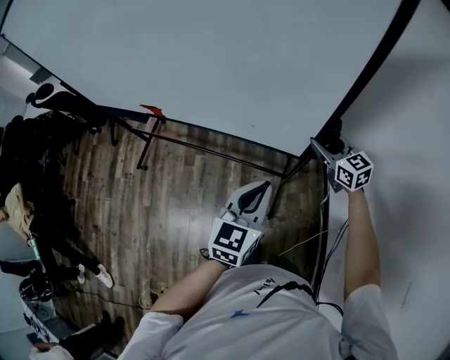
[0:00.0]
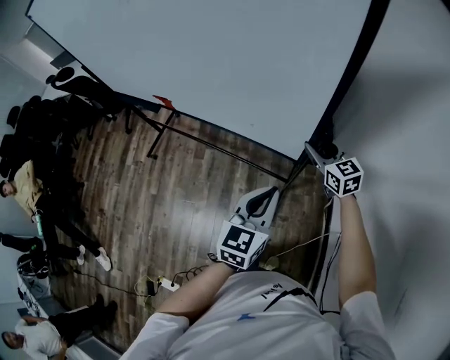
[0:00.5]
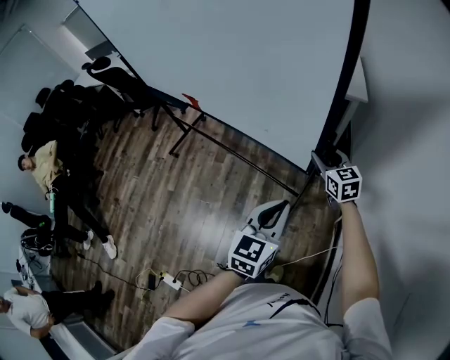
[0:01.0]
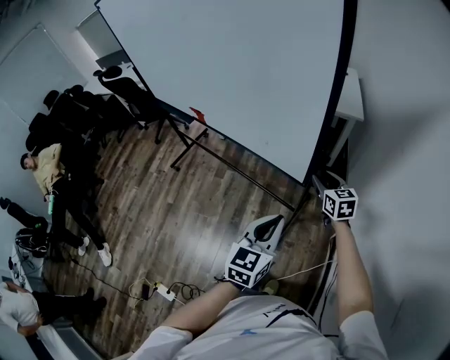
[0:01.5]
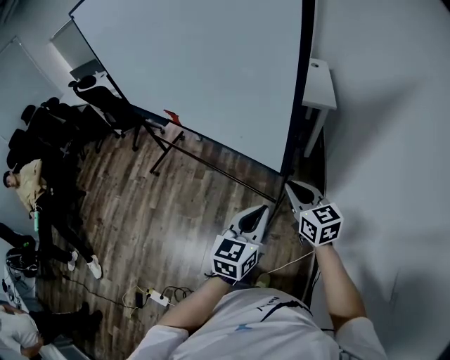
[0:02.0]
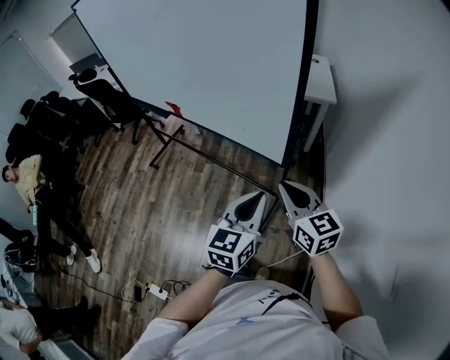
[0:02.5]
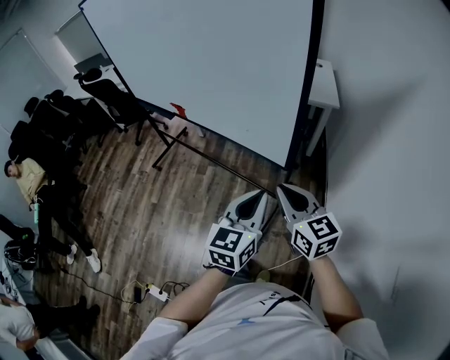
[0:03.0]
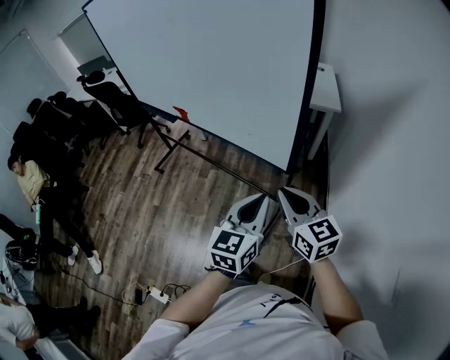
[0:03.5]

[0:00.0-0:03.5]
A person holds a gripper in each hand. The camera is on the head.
0:00.0 to 0:02.0: Both grippers move backward, some 20 cm. The right gripper closes up.
0:02.0 to 0:03.5: The right gripper travels backward, upward and to the left by some 10 cm.

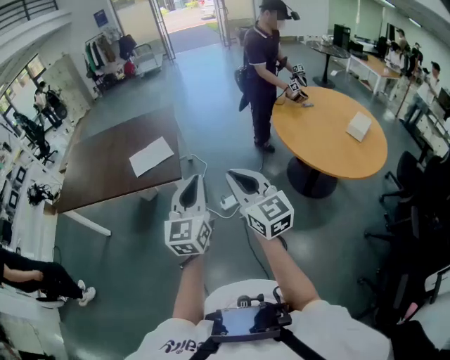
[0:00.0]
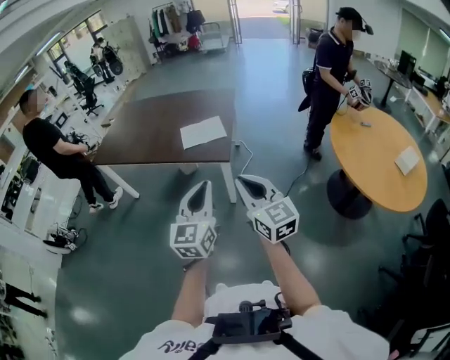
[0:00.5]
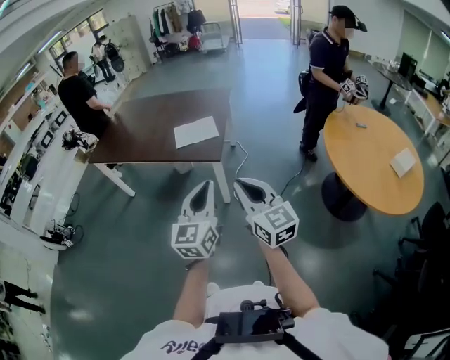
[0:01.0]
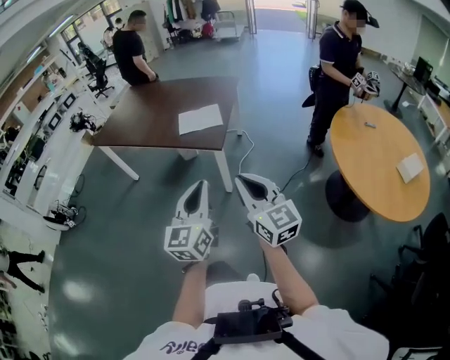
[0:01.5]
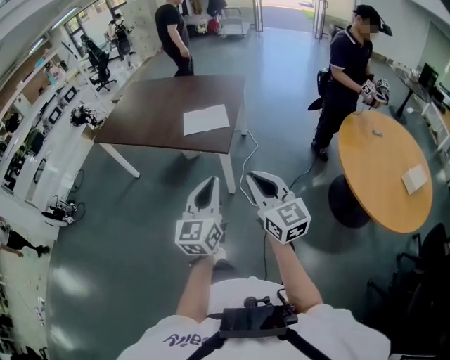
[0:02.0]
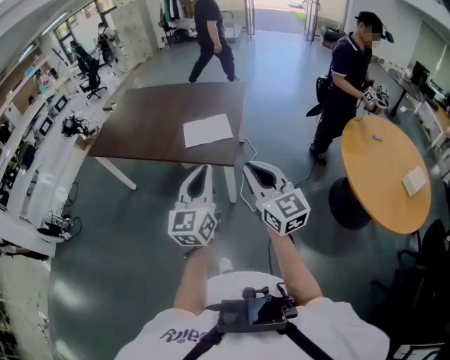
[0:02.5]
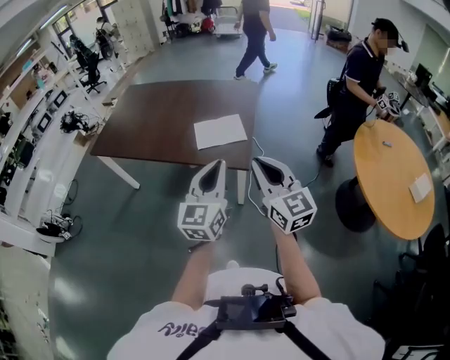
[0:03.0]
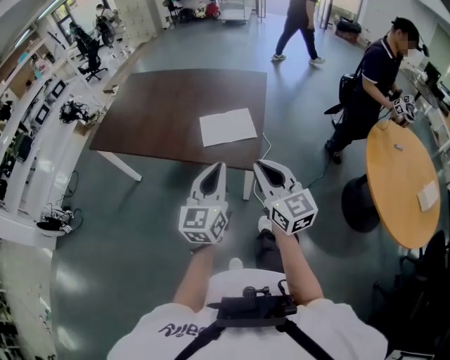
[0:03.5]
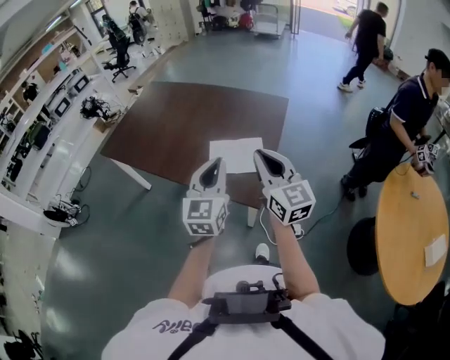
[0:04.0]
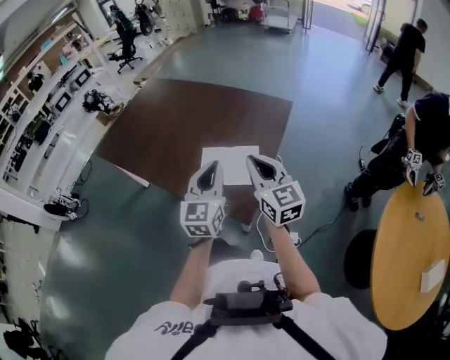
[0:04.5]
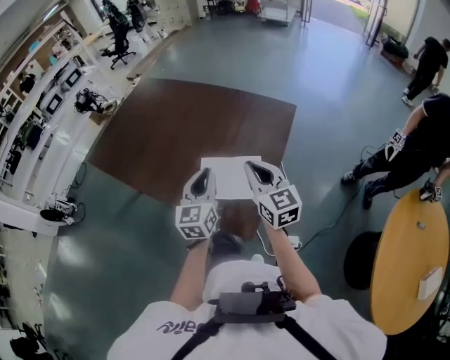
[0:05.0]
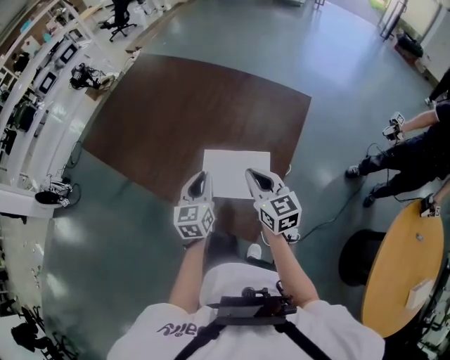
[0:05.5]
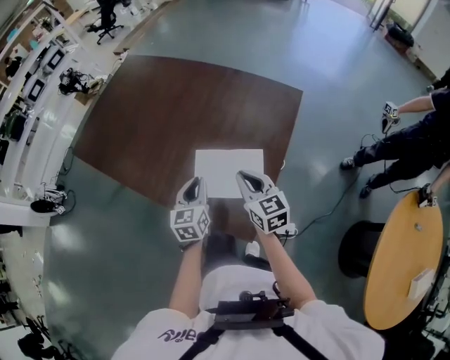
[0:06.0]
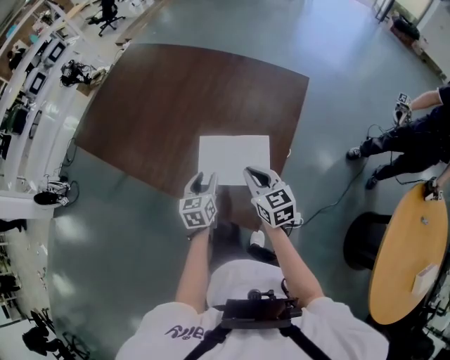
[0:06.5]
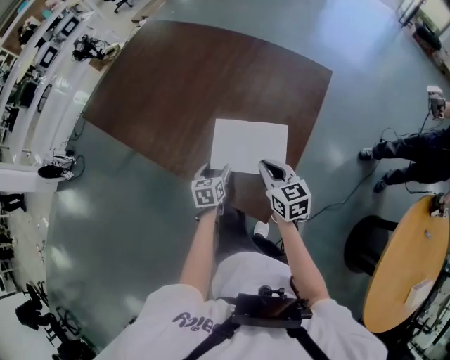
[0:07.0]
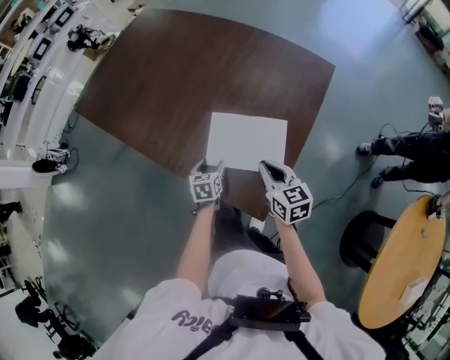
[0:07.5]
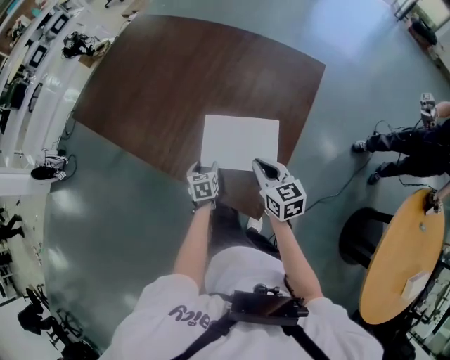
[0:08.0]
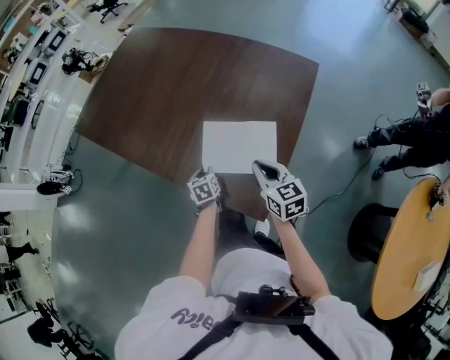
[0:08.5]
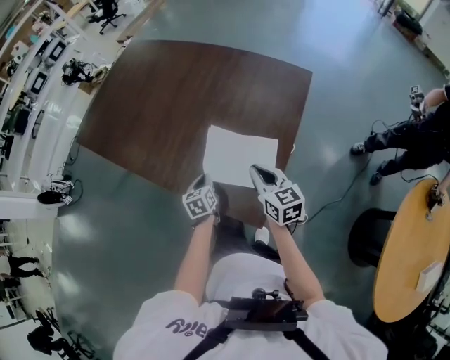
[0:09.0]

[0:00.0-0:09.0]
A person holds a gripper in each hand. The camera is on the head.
0:00.0 to 0:02.0: The left gripper shifts approximately 5 cm downward. Meanwhile the right gripper moves forward and downward, approximately 10 cm, and travels to the left and back again, approximately 10 cm each way.
0:02.0 to 0:04.5: The two grippers travel together, forward, roughly 50 cm.
0:04.5 to 0:07.0: The left gripper goes approximately 35 cm downward, angles its fingers downward, by roughly 40 degrees, and opens up. Meanwhile the right gripper moves downward, some 20 cm, and swivels roughly 30 degrees.
0:07.0 to 0:09.0: The left gripper closes up.

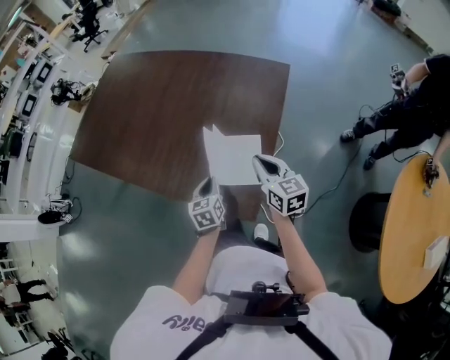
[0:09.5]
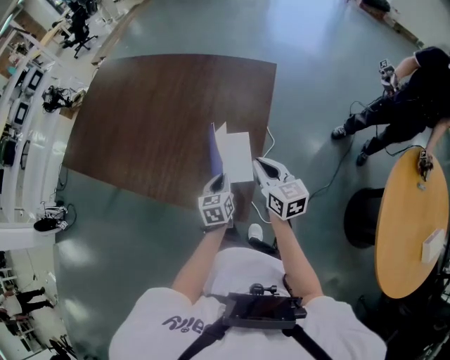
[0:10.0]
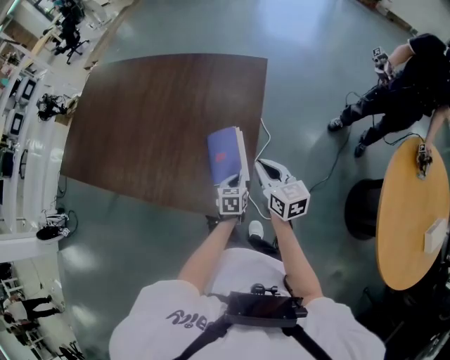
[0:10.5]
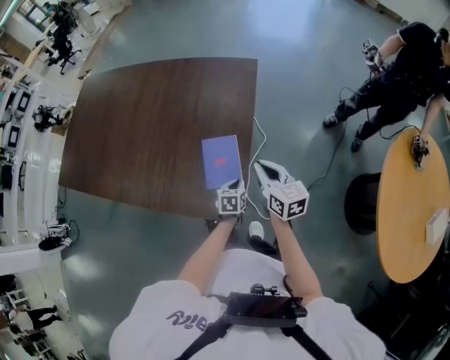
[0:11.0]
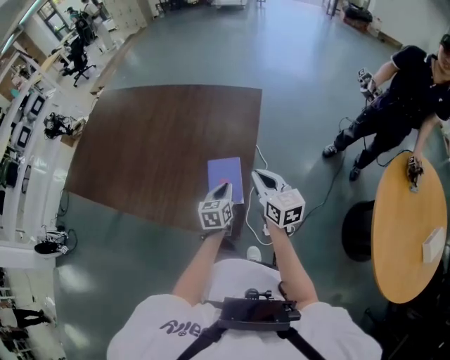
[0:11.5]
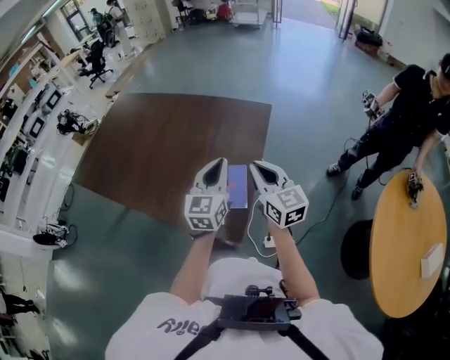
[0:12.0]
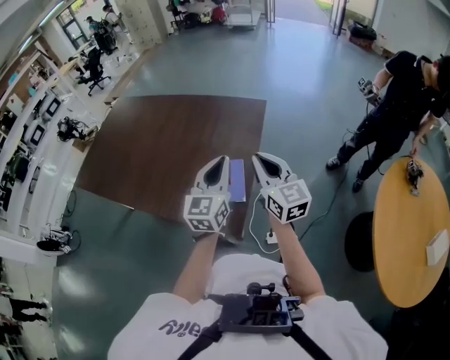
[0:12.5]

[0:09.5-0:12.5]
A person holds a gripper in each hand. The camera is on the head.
0:09.5 to 0:11.0: The right gripper shifts some 10 cm to the right; the left gripper goes some 20 cm to the right and downward, and rotates about 30 degrees.
0:11.0 to 0:12.5: The right gripper is displaced upward by approximately 20 cm, and turns by approximately 30 degrees; the left gripper shifts approximately 40 cm upward, and tips its fingers upward by about 50 degrees.

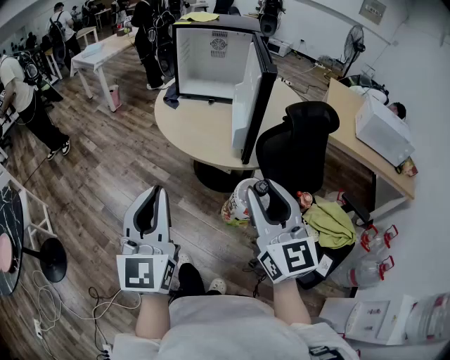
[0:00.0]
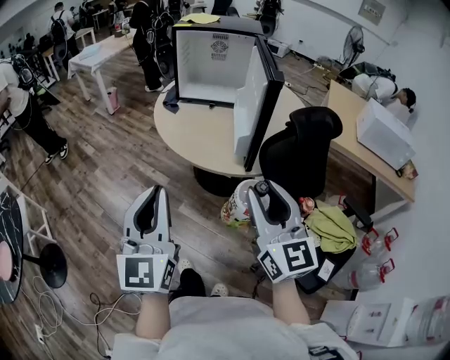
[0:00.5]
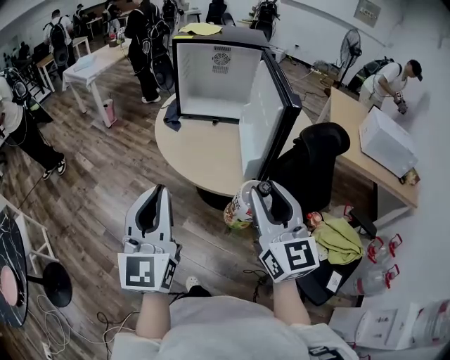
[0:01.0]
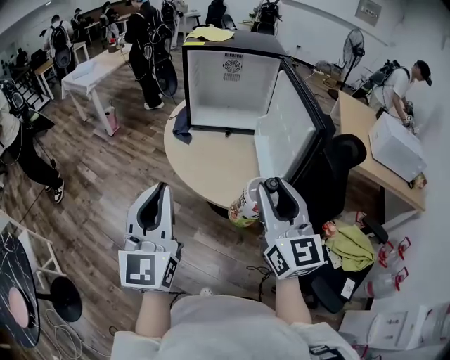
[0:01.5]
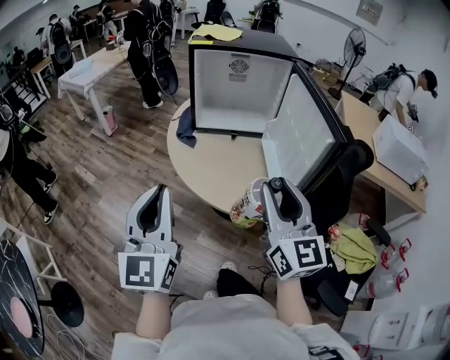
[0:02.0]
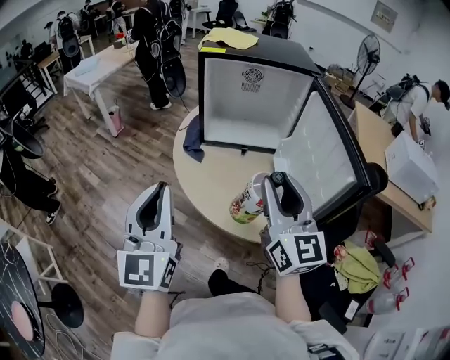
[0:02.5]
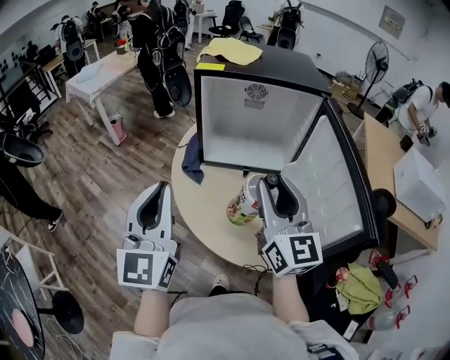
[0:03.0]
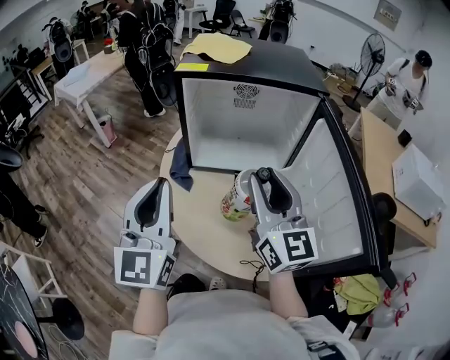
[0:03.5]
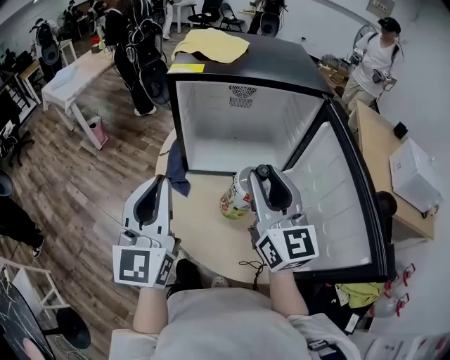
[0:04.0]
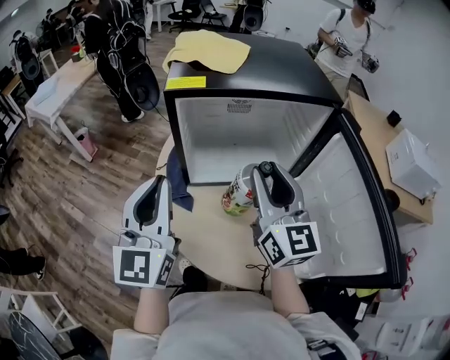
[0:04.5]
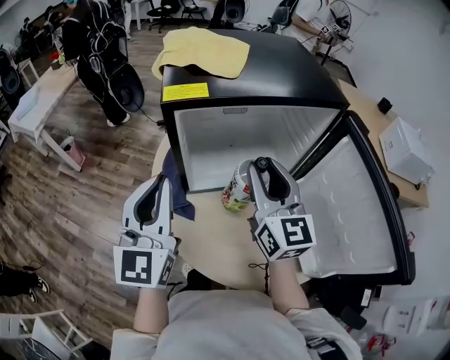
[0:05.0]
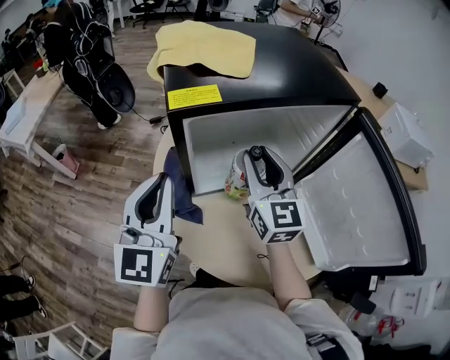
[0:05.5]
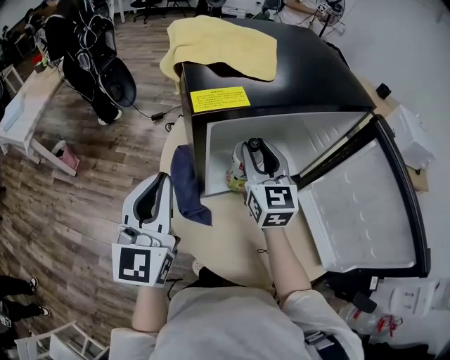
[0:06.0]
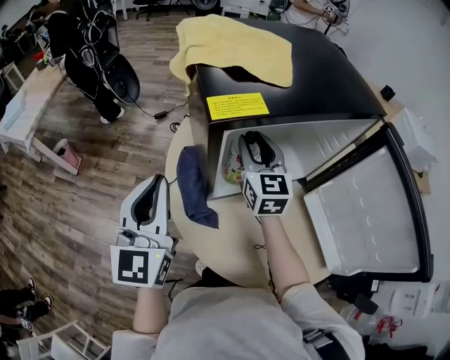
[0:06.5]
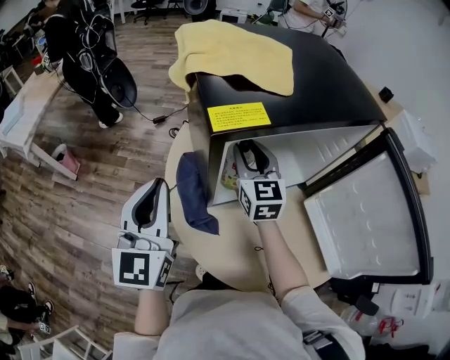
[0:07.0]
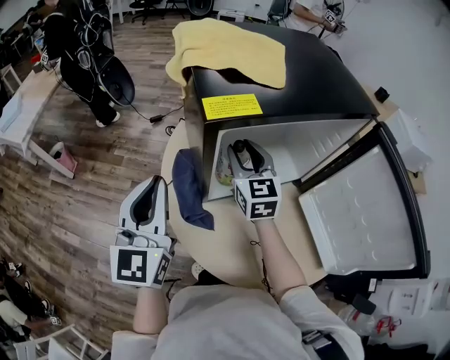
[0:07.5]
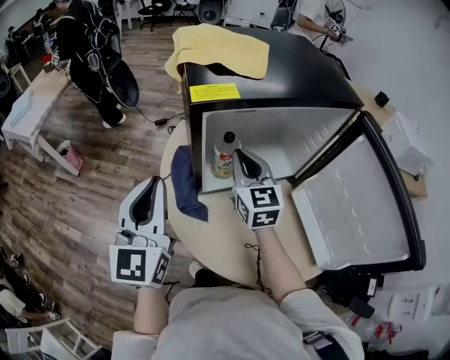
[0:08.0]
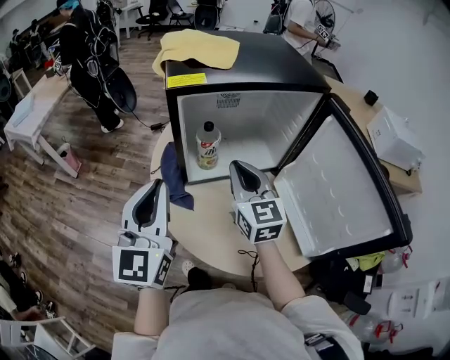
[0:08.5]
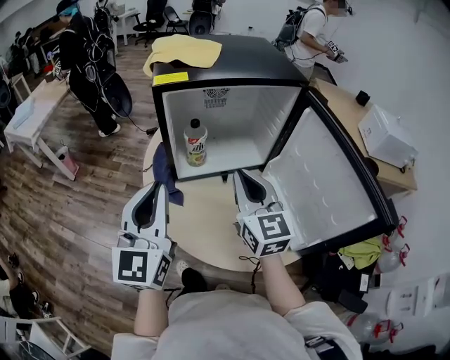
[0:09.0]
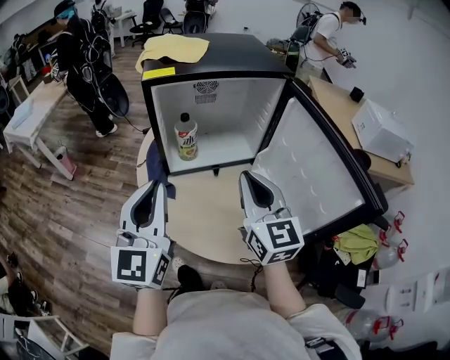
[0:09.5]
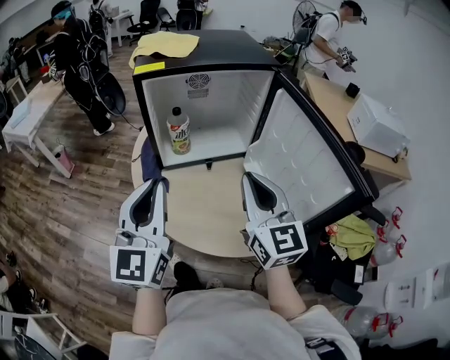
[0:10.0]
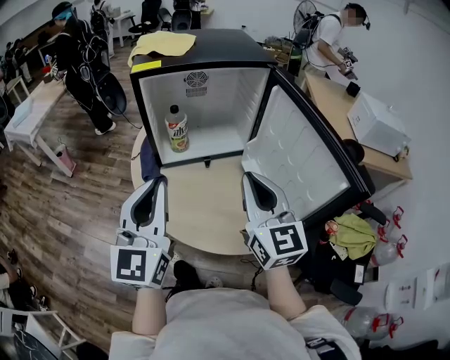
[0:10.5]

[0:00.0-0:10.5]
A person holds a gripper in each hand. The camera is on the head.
0:00.0 to 0:02.0: Both grippers travel together forward and to the left, roughly 30 cm.
0:02.0 to 0:04.0: The two grippers go some 30 cm forward.
0:04.0 to 0:06.5: The right gripper moves forward, to the left and downward, approximately 30 cm, and changes its angle by some 30 degrees. Meanwhile the left gripper is displaced forward and to the left by some 25 cm.
0:06.5 to 0:08.5: The left gripper shifts roughly 15 cm backward and to the right; the right gripper is displaced backward by roughly 20 cm, and closes its fingers.
0:08.5 to 0:10.5: Both grippers travel together backward and to the right, about 20 cm.
